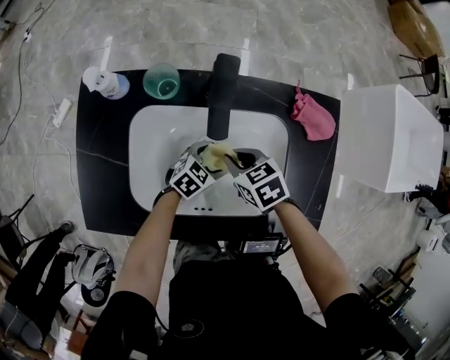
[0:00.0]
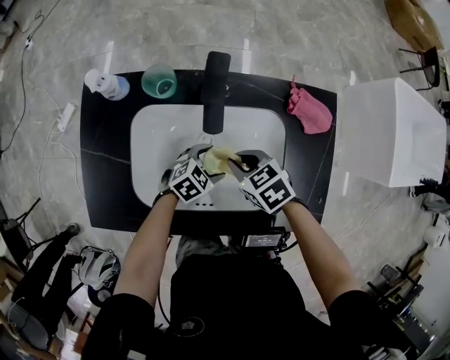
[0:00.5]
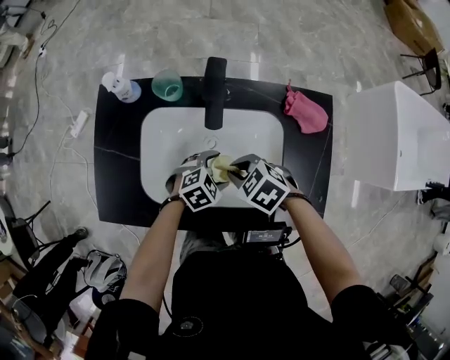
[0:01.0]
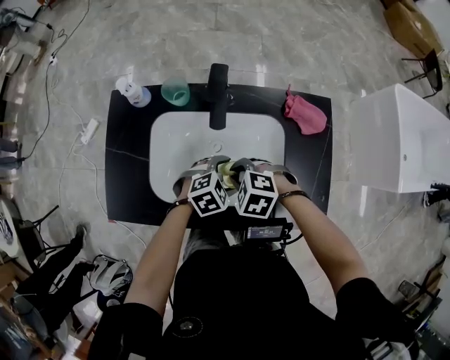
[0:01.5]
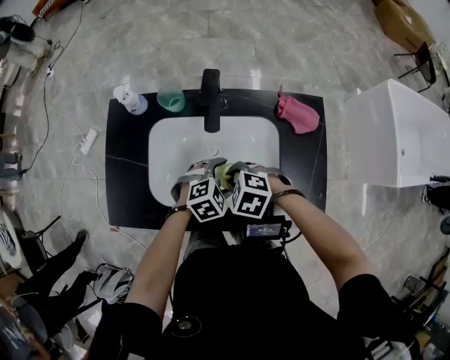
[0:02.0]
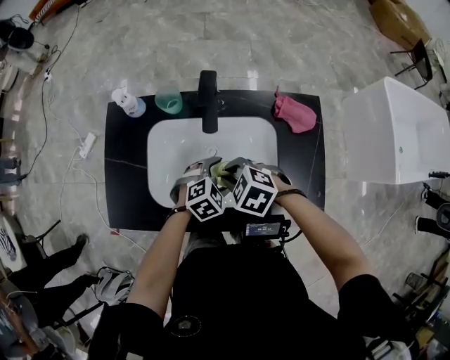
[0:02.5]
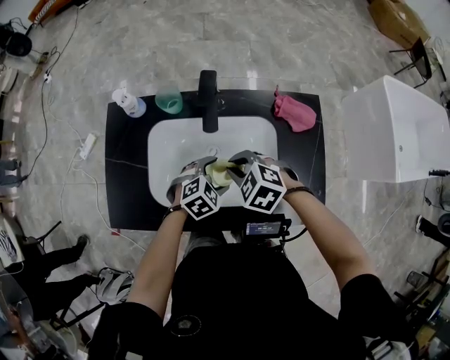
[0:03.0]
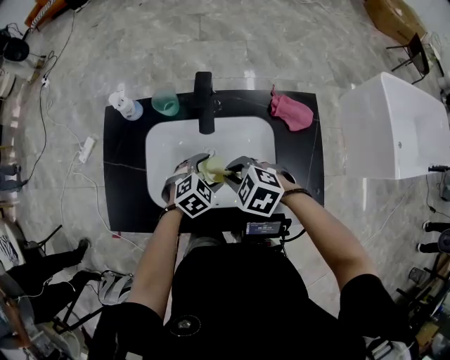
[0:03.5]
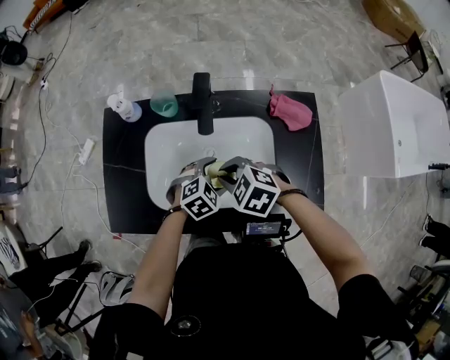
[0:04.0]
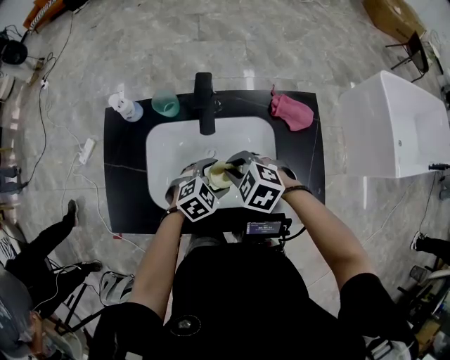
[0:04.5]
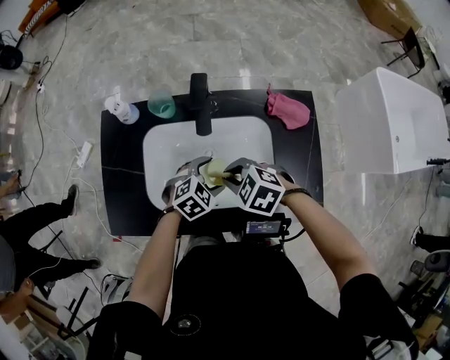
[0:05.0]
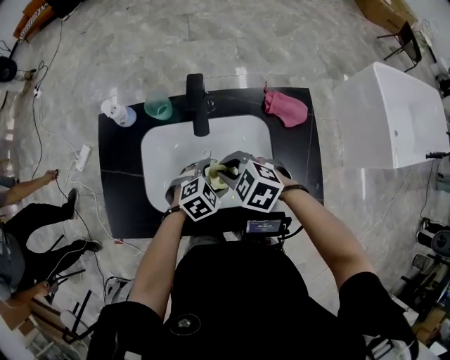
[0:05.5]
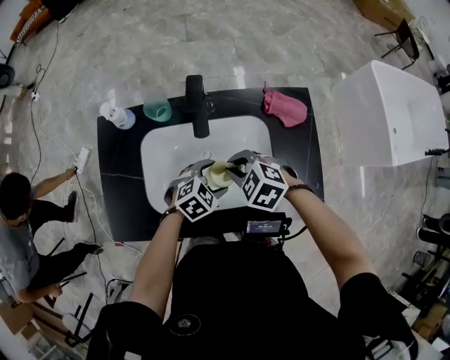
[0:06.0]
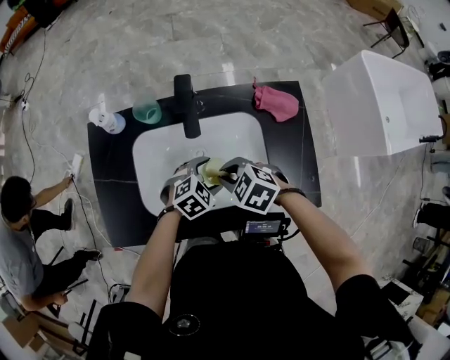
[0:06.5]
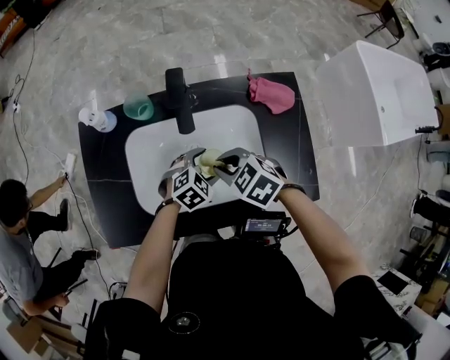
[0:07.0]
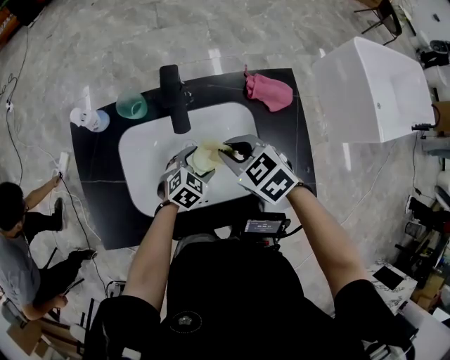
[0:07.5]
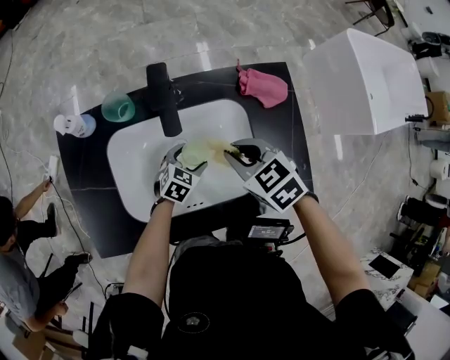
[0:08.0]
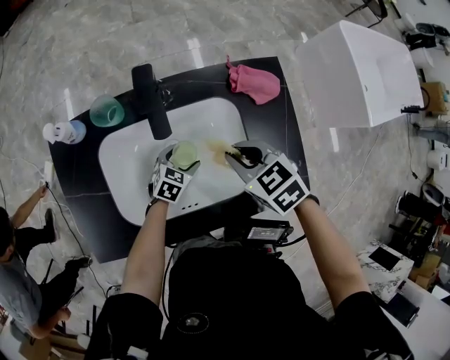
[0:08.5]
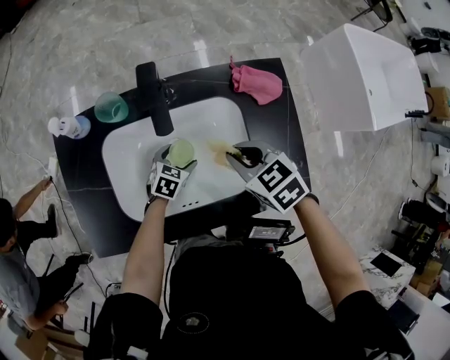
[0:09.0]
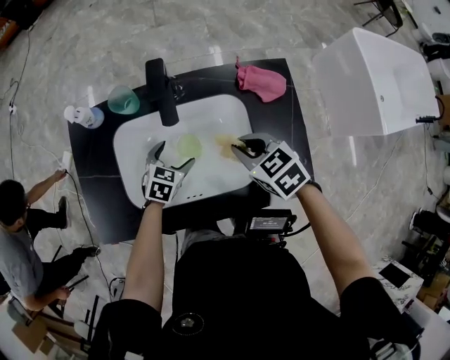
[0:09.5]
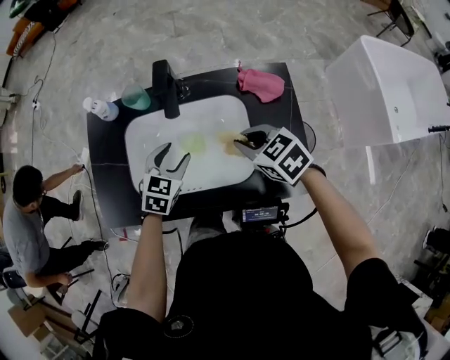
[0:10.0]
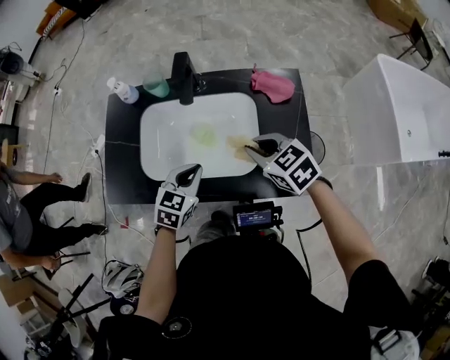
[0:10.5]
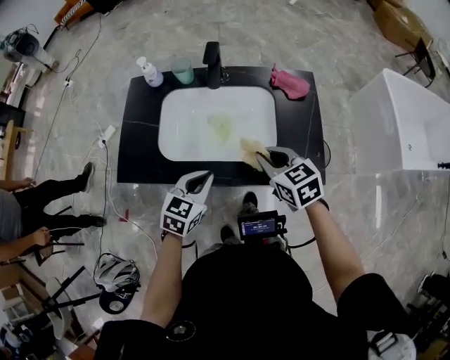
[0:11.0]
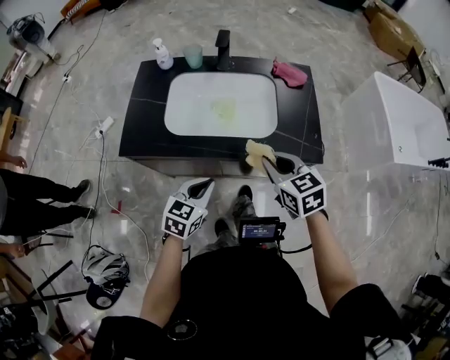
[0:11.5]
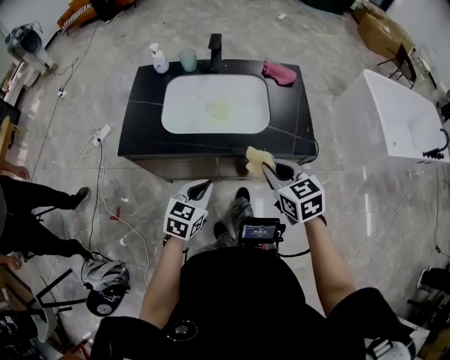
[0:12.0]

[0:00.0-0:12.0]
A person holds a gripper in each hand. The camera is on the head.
0:00.0 to 0:02.0: The left gripper shifts about 10 cm upward, and changes its angle by some 30 degrees. The right gripper changes place by roughly 10 cm, and swivels some 40 degrees.
0:02.0 to 0:04.0: The right gripper ends up about 5 cm from where it was.
0:04.0 to 0:06.0: The grippers stay close to where they were, moving slightly.
0:06.0 to 0:08.0: The right gripper moves approximately 5 cm, and rotates about 30 degrees. Meanwhile the left gripper moves downward, about 10 cm.
0:08.0 to 0:10.0: The right gripper moves about 5 cm, while the left gripper shifts some 15 cm upward, and turns by some 20 degrees.
0:10.0 to 0:12.0: Both grippers move backward, some 30 cm. The right gripper rotates roughly 20 degrees; the left gripper closes up.

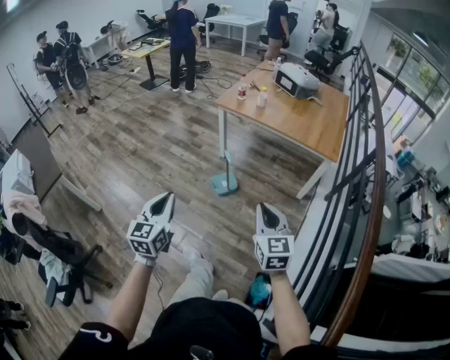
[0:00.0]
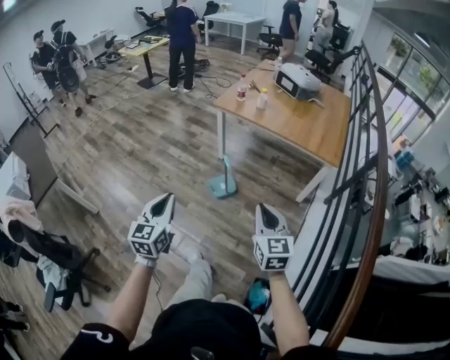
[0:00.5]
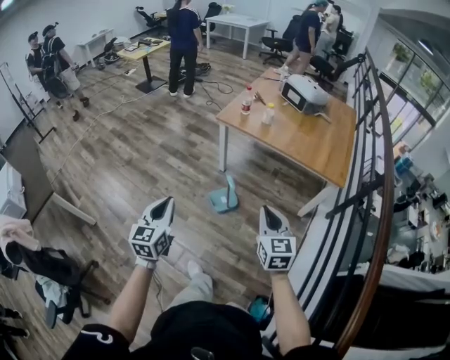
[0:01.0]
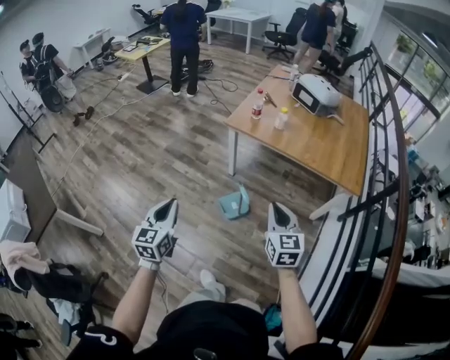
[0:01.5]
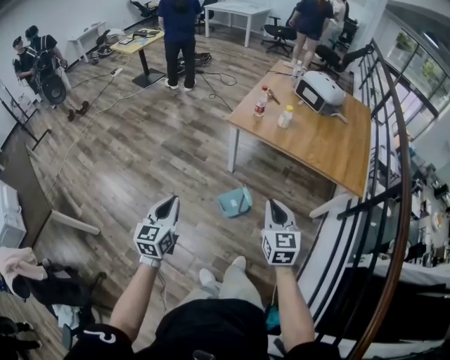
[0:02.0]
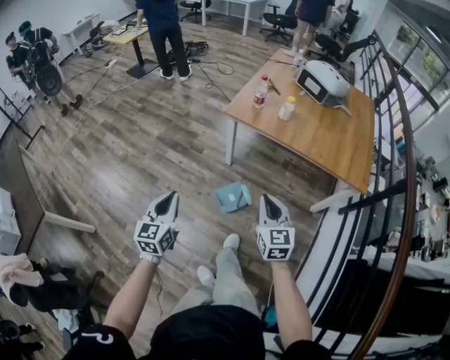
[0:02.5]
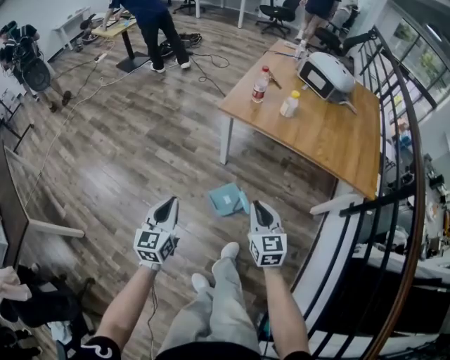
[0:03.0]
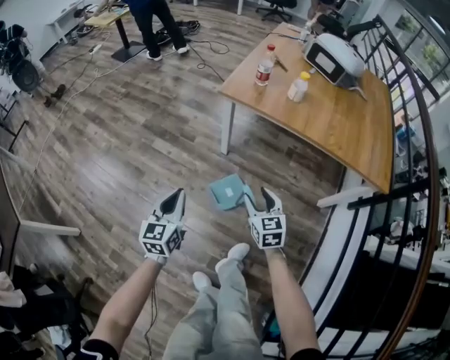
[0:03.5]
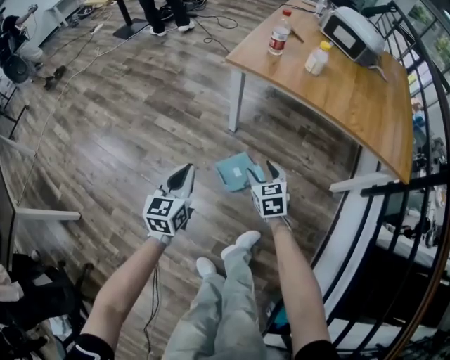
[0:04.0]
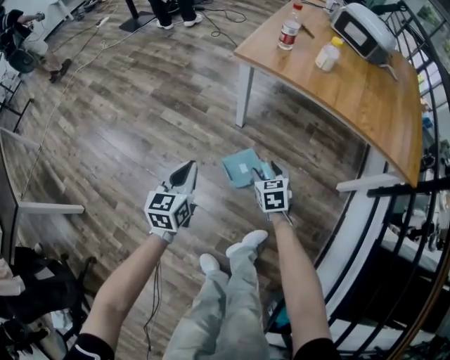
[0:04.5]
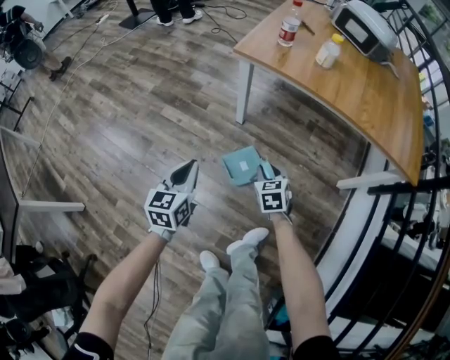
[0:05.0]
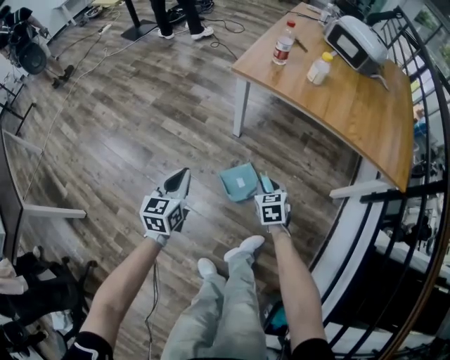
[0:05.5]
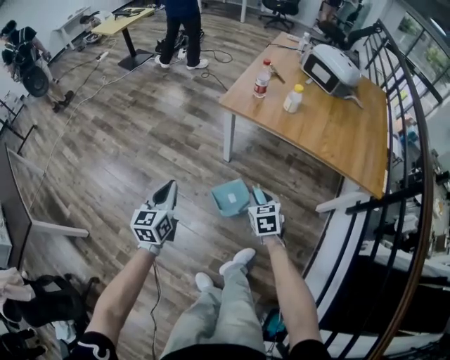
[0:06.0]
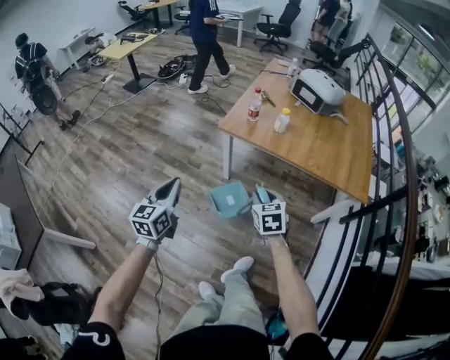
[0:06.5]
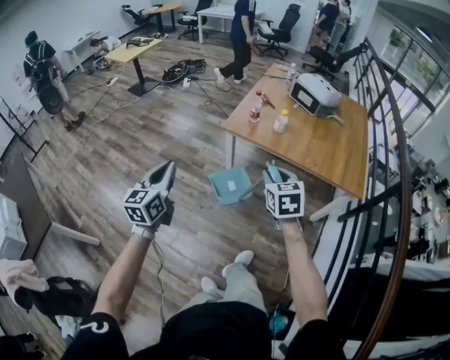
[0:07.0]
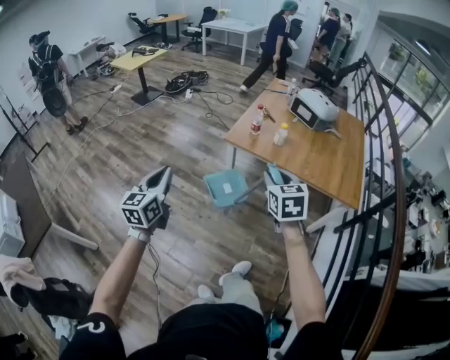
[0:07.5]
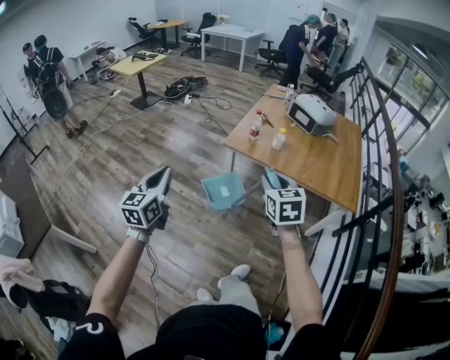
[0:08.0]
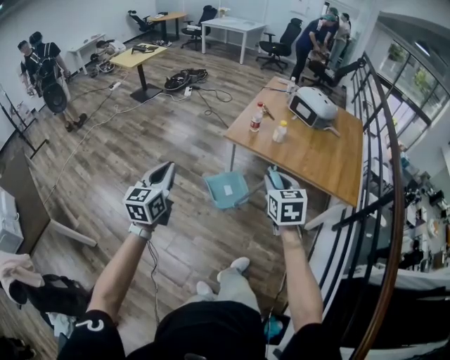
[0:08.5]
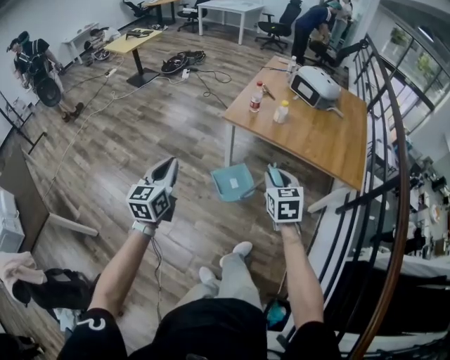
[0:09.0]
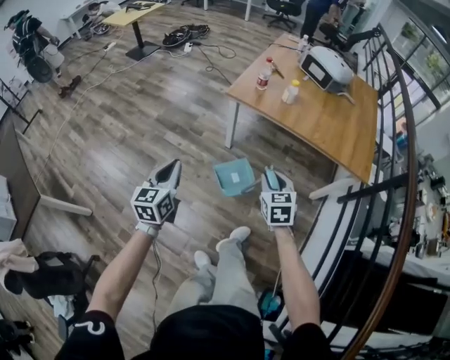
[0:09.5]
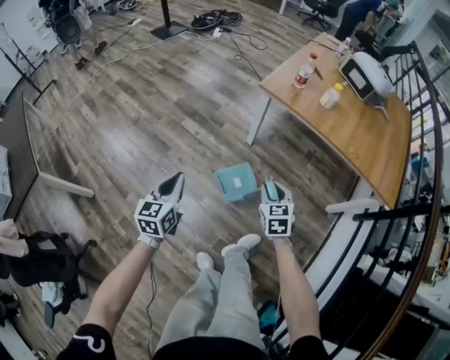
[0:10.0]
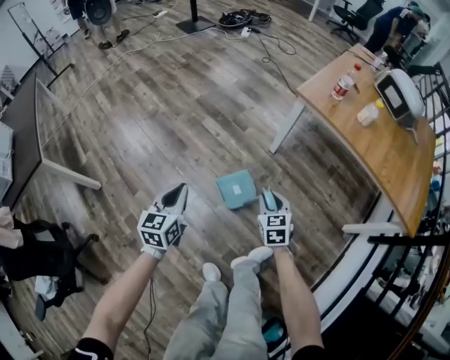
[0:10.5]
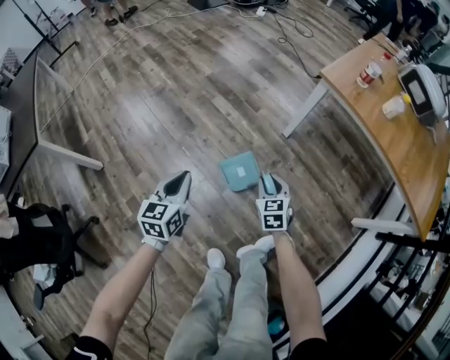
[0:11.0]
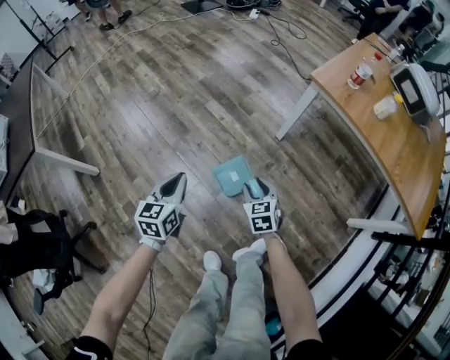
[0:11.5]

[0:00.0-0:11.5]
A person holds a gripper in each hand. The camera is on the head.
0:00.0 to 0:02.0: The left gripper is displaced forward and to the left by approximately 35 cm. Meanwhile the right gripper moves forward, roughly 35 cm.
0:02.0 to 0:04.0: The grippers both shift downward and forward by some 40 cm. The right gripper changes its angle by about 20 degrees, and opens its fingers.
0:04.0 to 0:06.0: Both grippers travel together upward, some 15 cm. The right gripper closes its fingers.
0:06.0 to 0:07.5: The grippers both shift upward by roughly 35 cm.
0:07.5 to 0:09.5: The grippers both shift downward by some 20 cm.
0:09.5 to 0:11.5: Both grippers move downward and to the left, some 40 cm. The right gripper changes its angle by roughly 30 degrees.

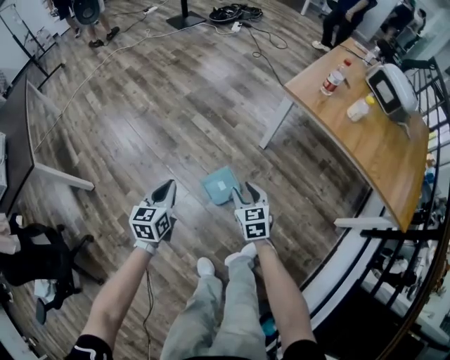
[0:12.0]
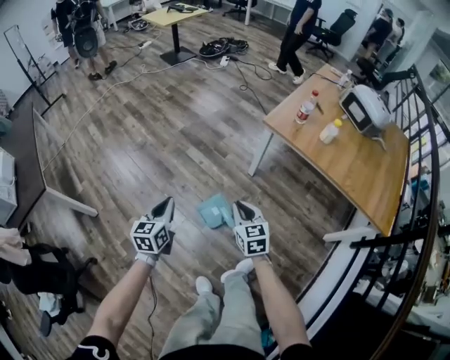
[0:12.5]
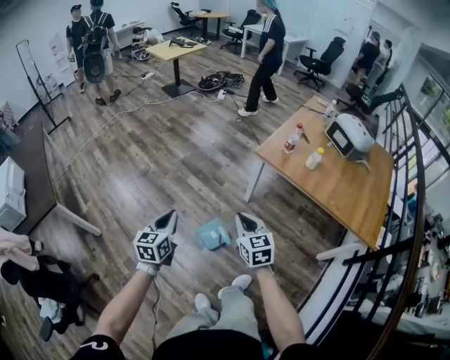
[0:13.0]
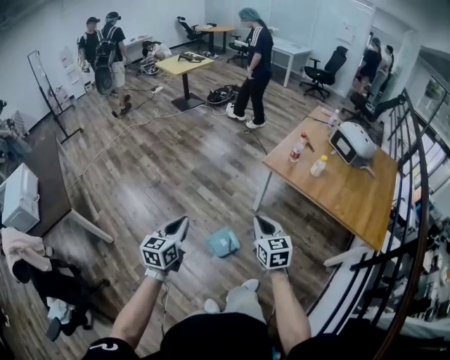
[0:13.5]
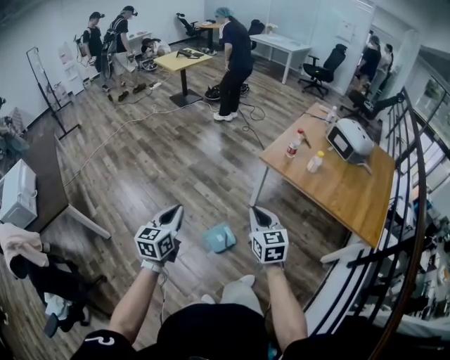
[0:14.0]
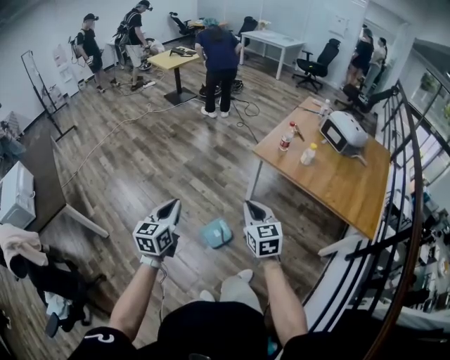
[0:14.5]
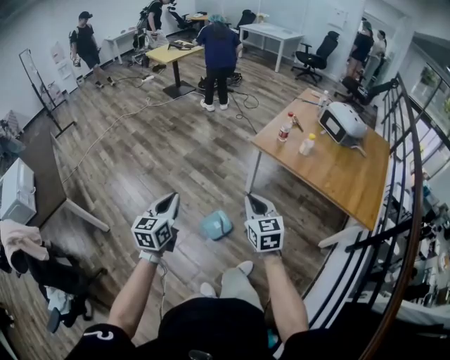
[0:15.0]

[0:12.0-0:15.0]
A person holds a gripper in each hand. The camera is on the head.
0:12.0 to 0:13.5: Both grippers travel together upward, about 30 cm. The right gripper closes up.
0:13.5 to 0:15.0: The left gripper changes place by approximately 5 cm; the right gripper changes place by some 5 cm.
